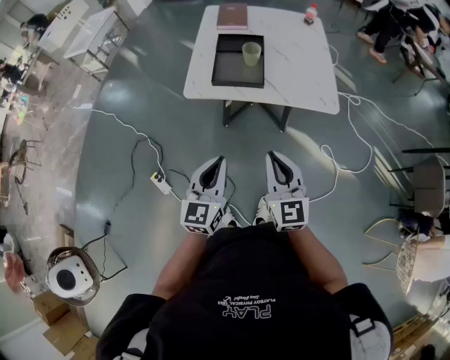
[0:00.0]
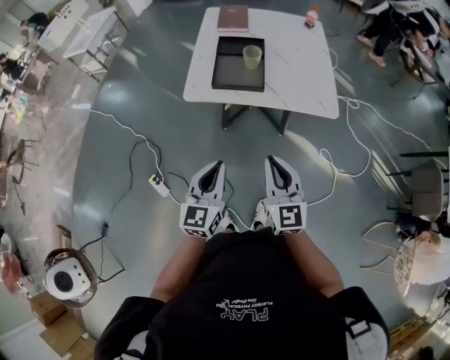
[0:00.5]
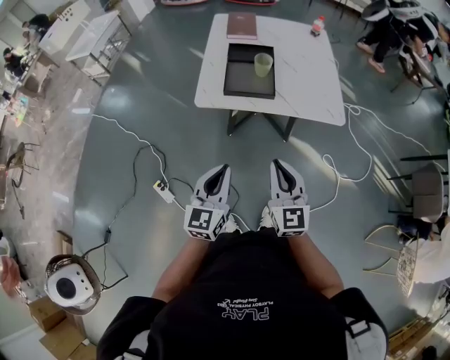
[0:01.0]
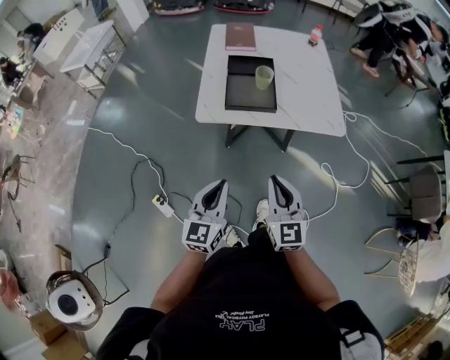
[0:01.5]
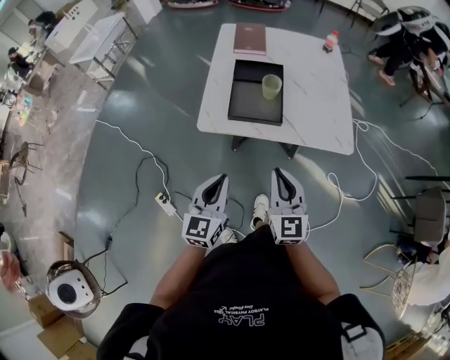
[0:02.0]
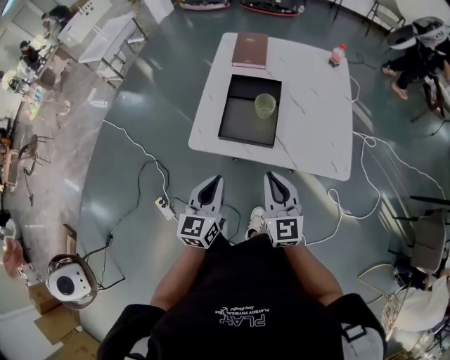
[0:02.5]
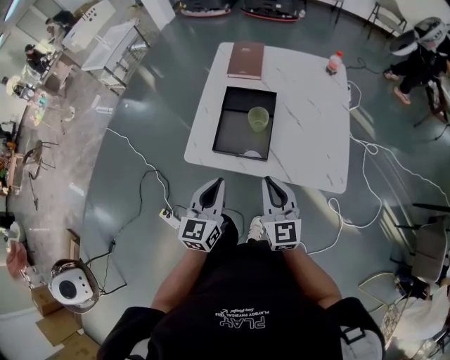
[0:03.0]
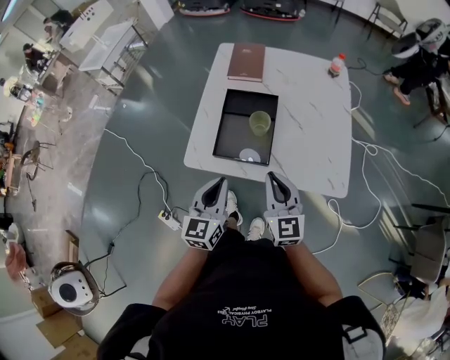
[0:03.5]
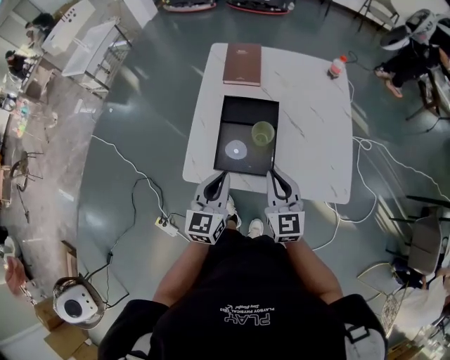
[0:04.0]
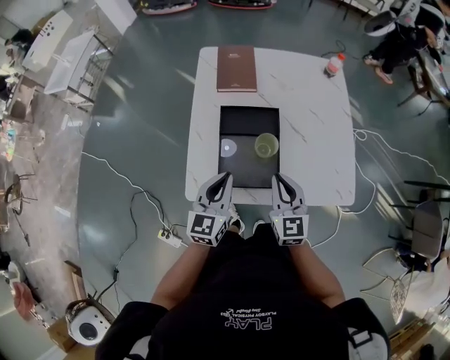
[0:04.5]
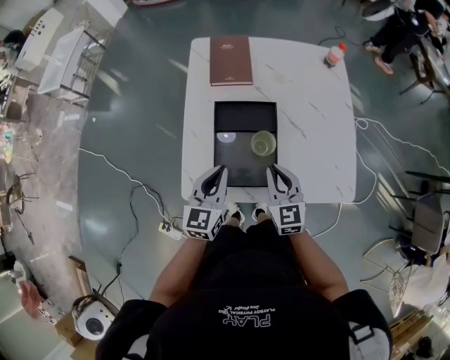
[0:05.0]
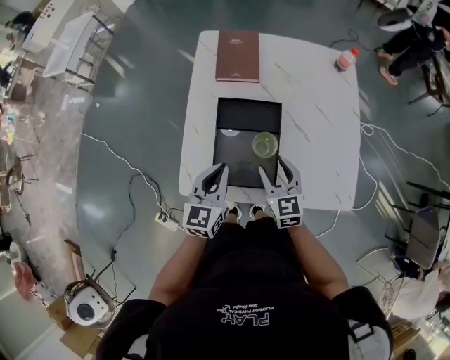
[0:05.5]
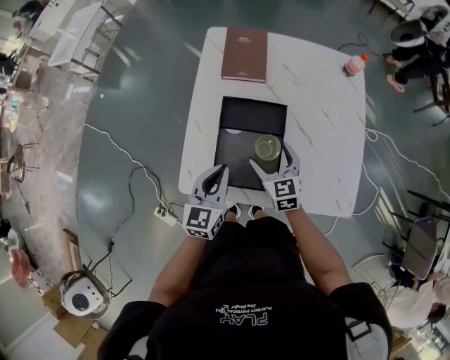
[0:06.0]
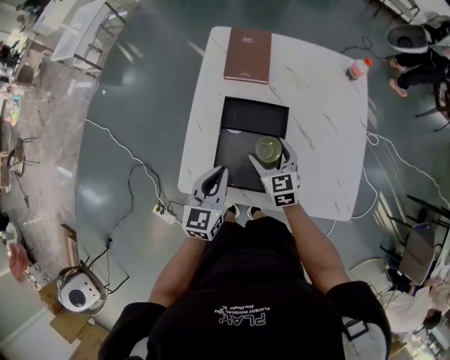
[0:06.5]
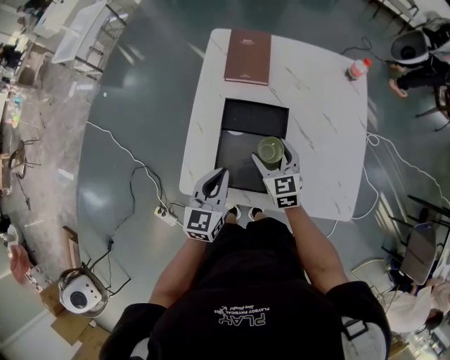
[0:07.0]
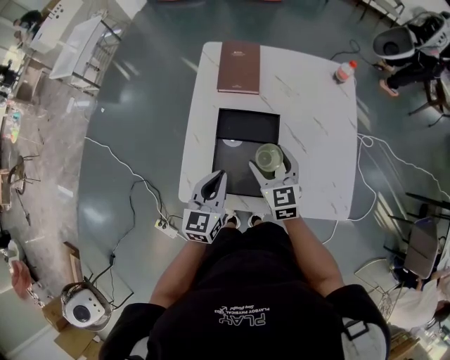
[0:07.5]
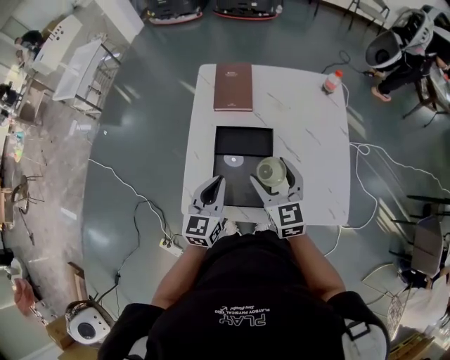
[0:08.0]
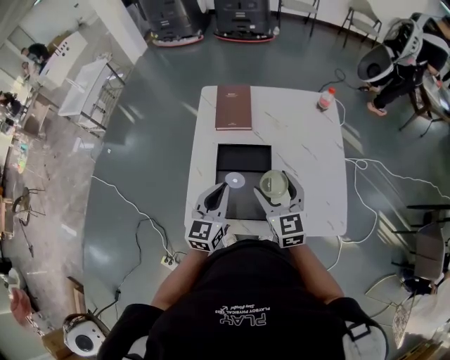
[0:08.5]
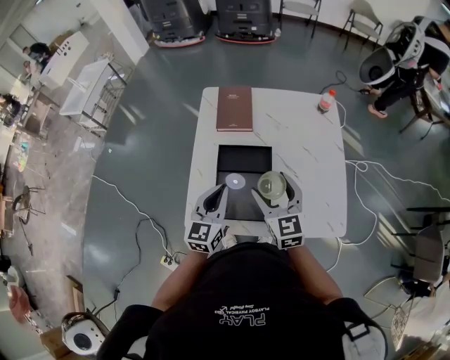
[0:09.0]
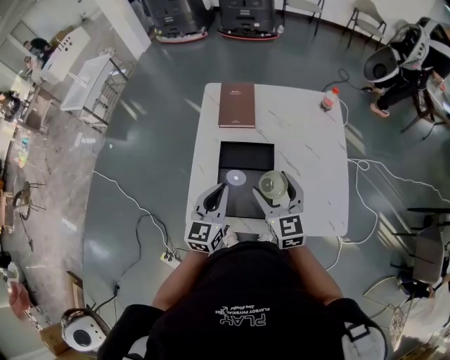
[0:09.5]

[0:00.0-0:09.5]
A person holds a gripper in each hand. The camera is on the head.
0:00.0 to 0:02.0: The right gripper travels forward by some 10 cm. Meanwhile the left gripper goes some 10 cm forward and to the left.
0:02.0 to 0:04.0: The grippers both shift forward by roughly 20 cm.
0:04.0 to 0:05.5: The right gripper is displaced downward and forward by roughly 15 cm, and opens its fingers. Meanwhile the left gripper goes about 10 cm forward.
0:05.5 to 0:07.5: The right gripper is displaced forward by some 5 cm, and opens.
0:07.5 to 0:09.5: The left gripper travels upward by roughly 5 cm; the right gripper goes about 10 cm upward.

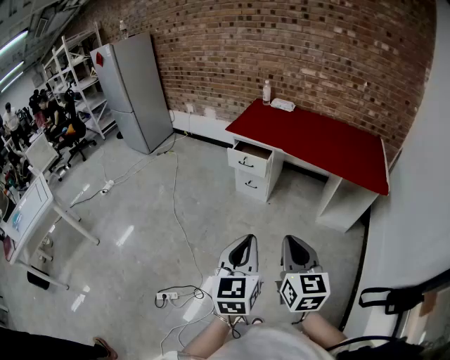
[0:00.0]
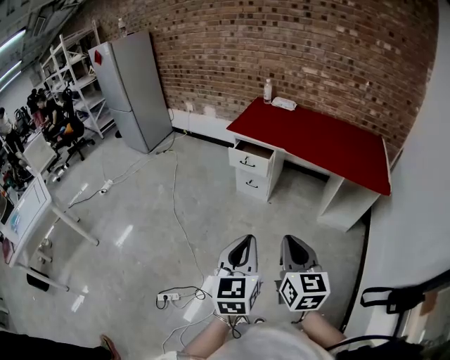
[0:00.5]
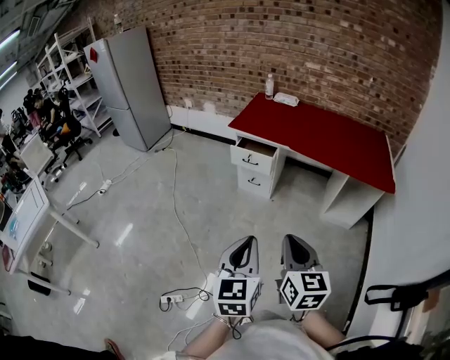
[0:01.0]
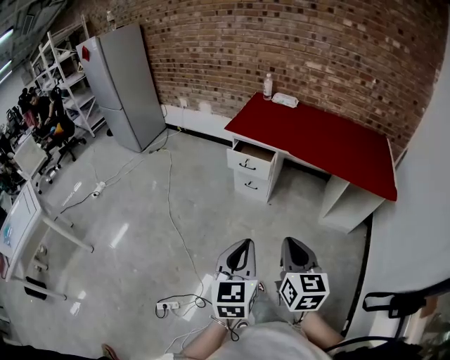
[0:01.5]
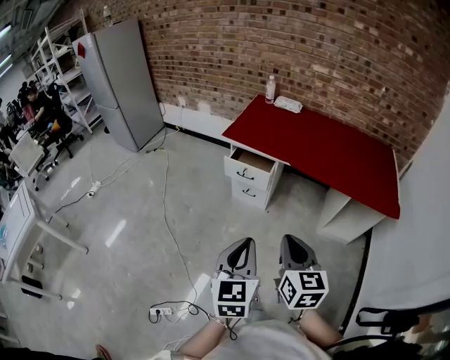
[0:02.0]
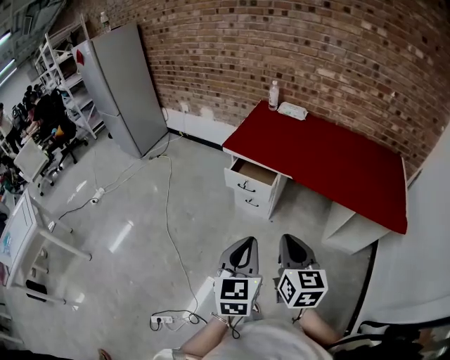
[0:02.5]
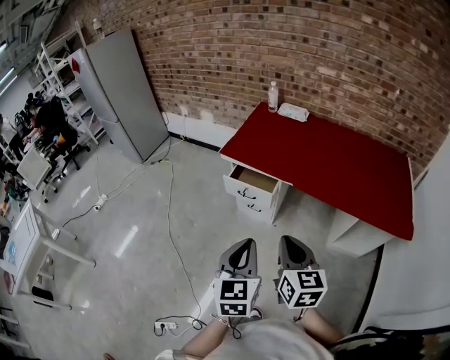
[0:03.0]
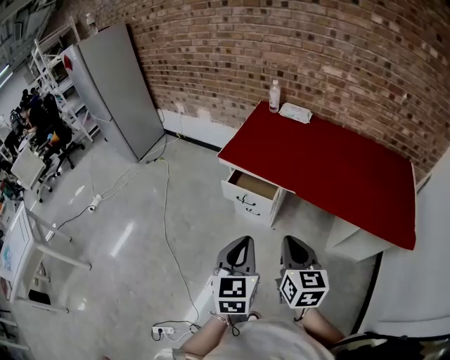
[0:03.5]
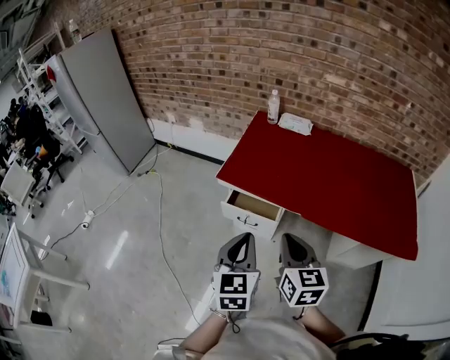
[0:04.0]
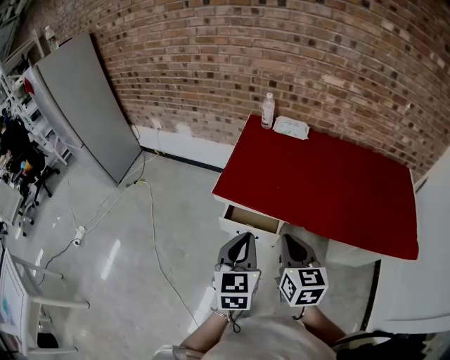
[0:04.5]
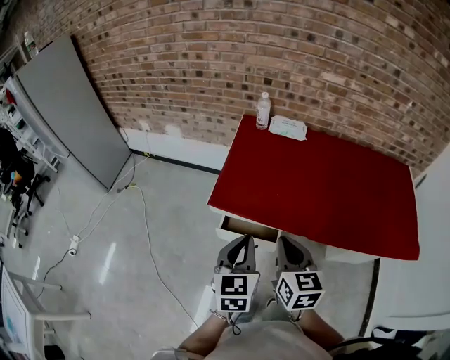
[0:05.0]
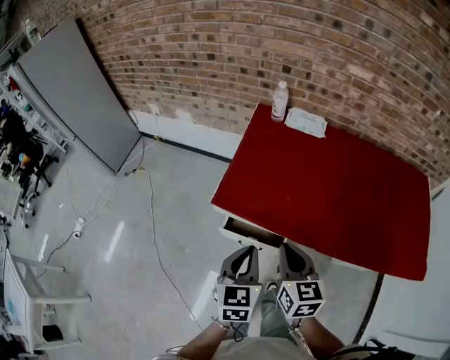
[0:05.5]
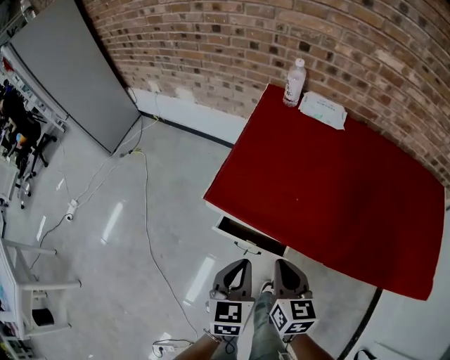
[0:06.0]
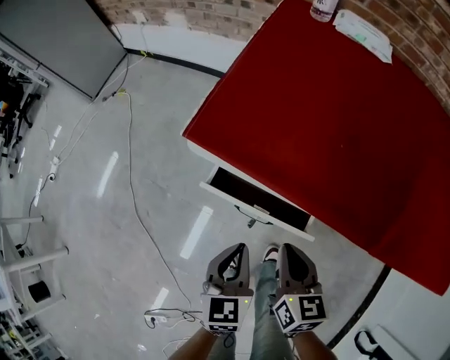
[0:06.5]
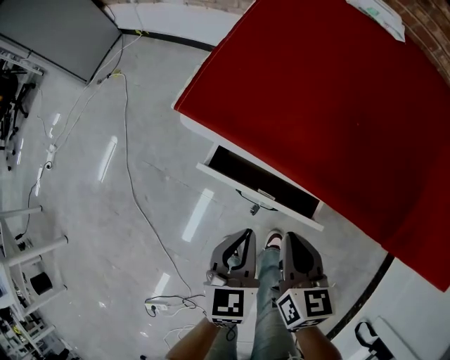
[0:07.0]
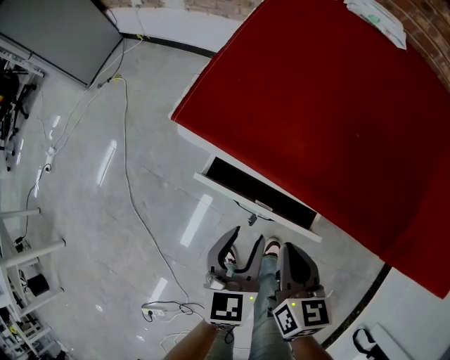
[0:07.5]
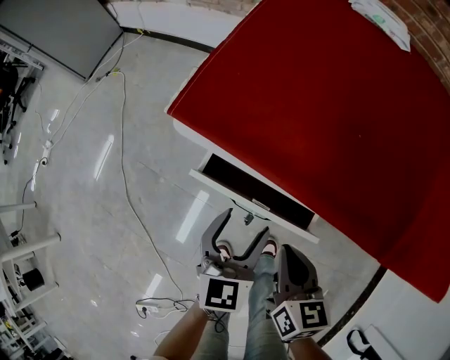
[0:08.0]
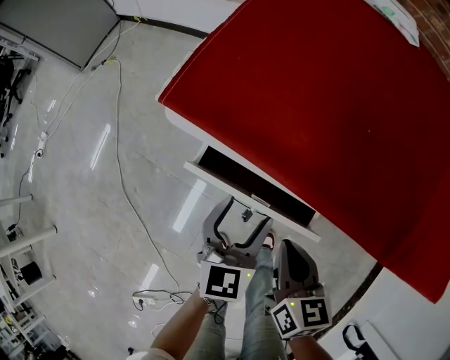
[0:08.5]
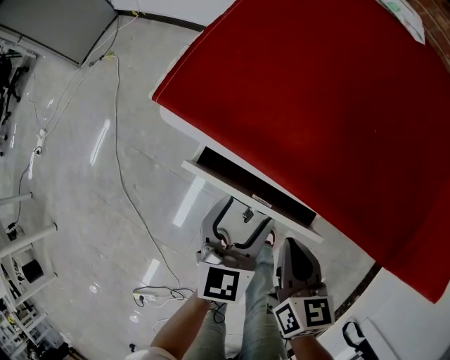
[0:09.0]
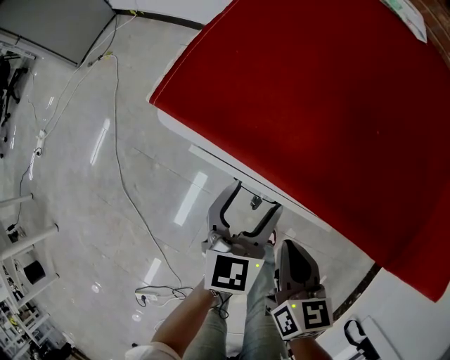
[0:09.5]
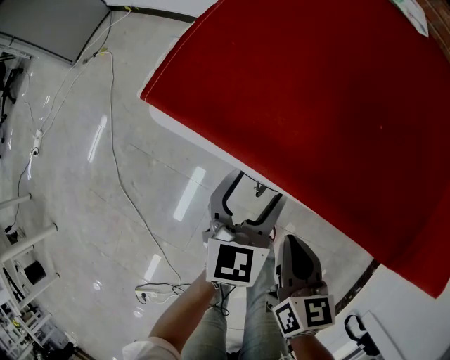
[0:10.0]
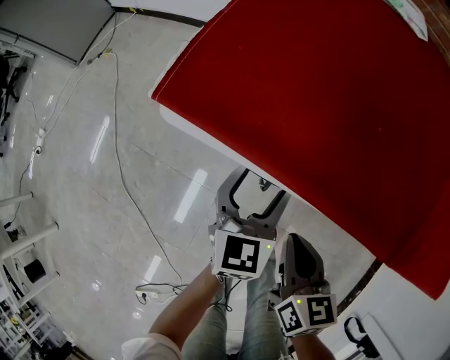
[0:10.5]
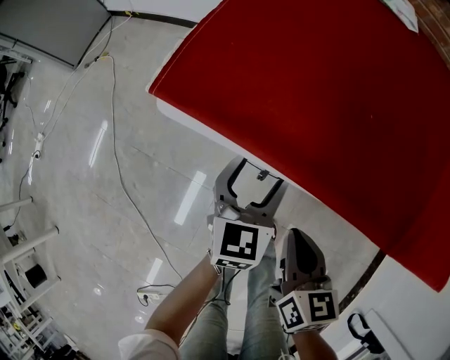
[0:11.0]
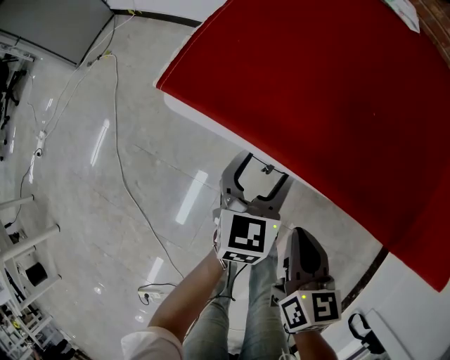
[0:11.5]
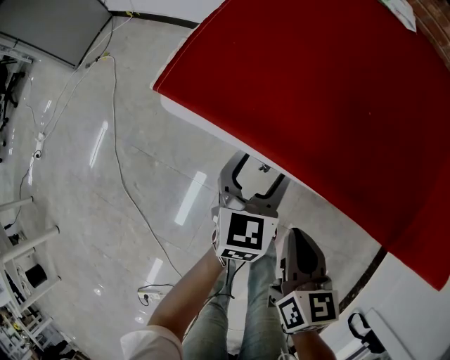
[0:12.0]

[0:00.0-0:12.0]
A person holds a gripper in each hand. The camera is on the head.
0:00.0 to 0:02.0: Both grippers travel together forward, roughly 20 cm.
0:02.0 to 0:04.0: The grippers both shift forward by some 35 cm.
0:04.0 to 0:06.0: The right gripper heads forward and downward, covering approximately 25 cm. The left gripper travels downward and forward by some 25 cm.
0:06.0 to 0:08.0: The grippers both shift downward by approximately 20 cm. The left gripper opens.
0:08.0 to 0:10.0: The left gripper heads forward, covering about 5 cm.
0:10.0 to 0:12.0: There are only small adjustments of the grippers.

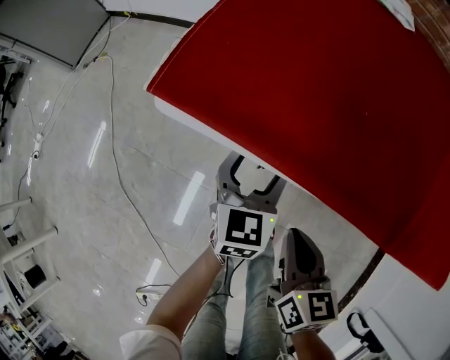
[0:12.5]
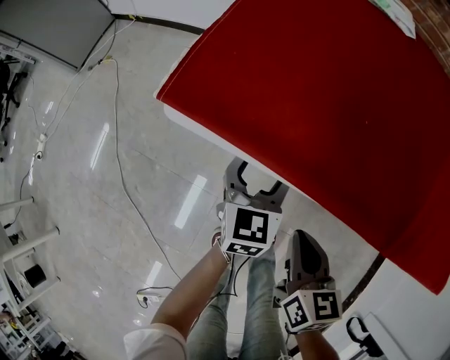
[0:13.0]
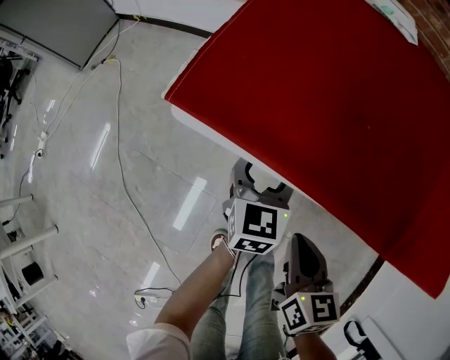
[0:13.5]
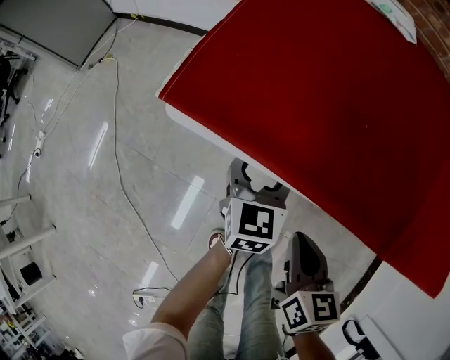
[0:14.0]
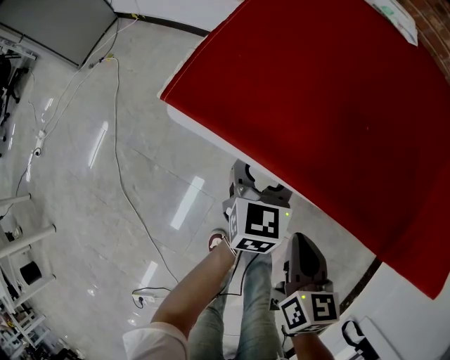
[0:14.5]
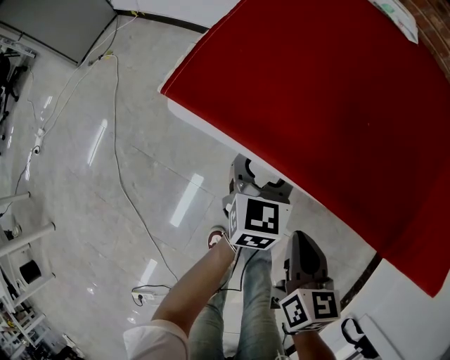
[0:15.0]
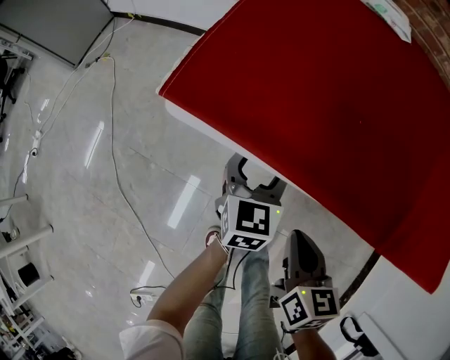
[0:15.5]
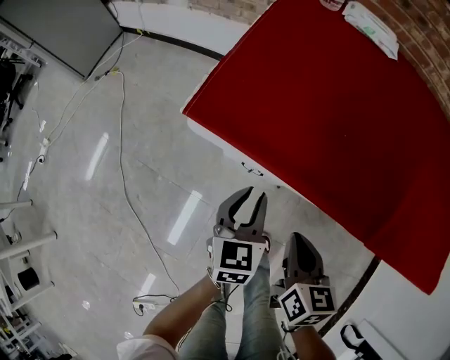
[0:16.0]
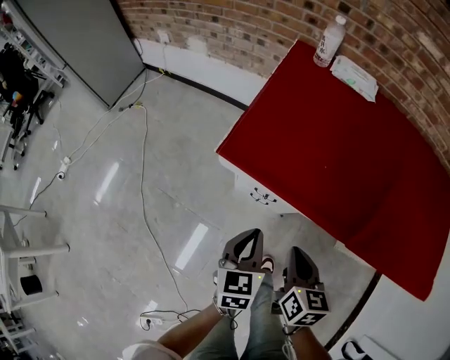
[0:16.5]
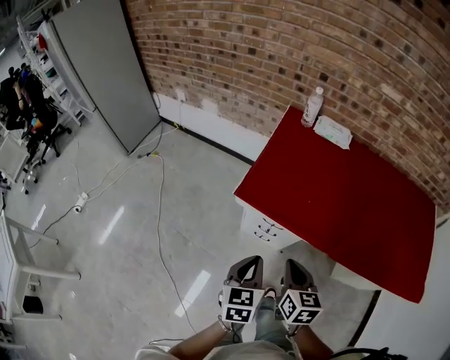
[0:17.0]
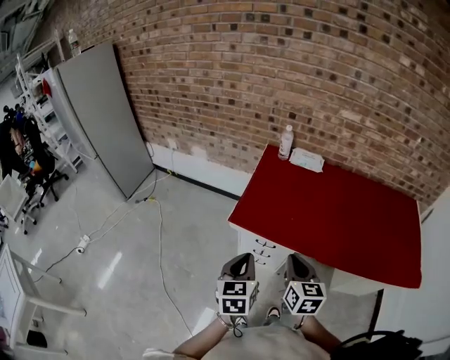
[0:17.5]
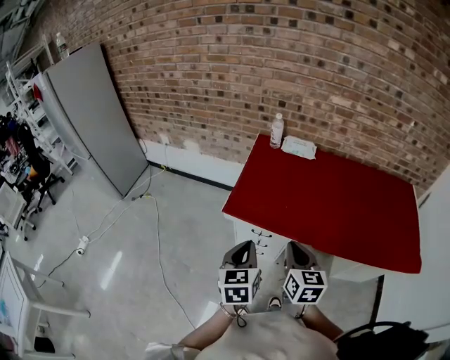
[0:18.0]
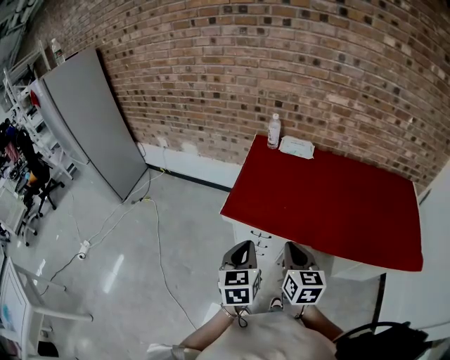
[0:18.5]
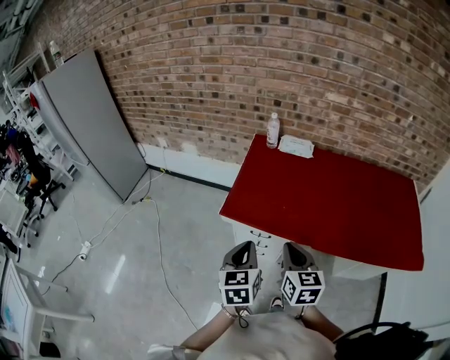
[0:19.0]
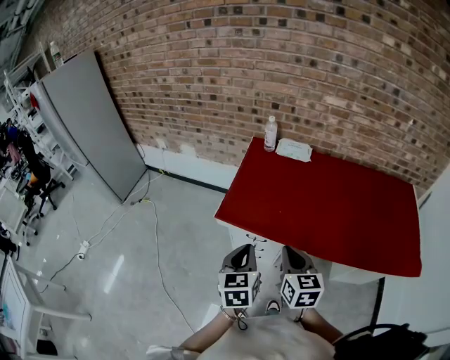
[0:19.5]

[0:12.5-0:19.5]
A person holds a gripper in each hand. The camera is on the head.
0:12.5 to 0:14.5: The grippers stay close to where they were, moving slightly.
0:14.5 to 0:16.0: The left gripper heads backward, covering some 10 cm, and closes up.
0:16.0 to 0:17.5: The two grippers go approximately 30 cm upward.
0:17.5 to 0:19.5: The left gripper is displaced to the right by about 5 cm.
